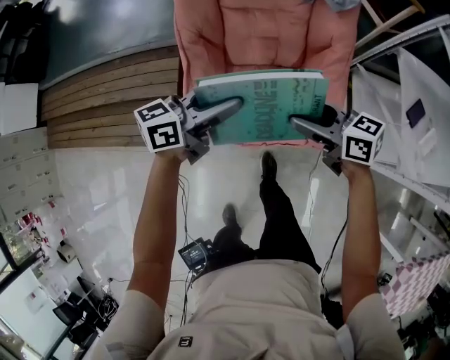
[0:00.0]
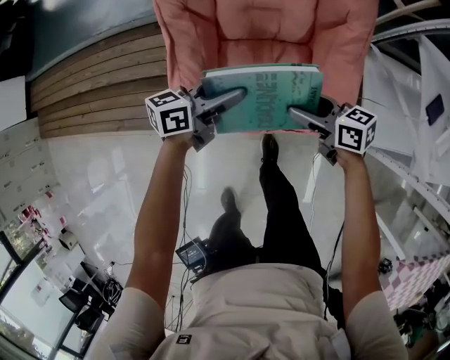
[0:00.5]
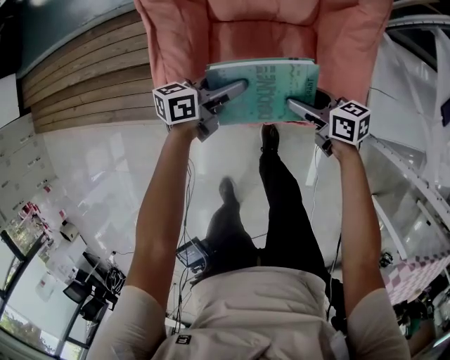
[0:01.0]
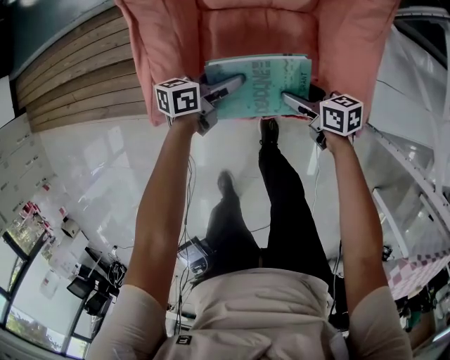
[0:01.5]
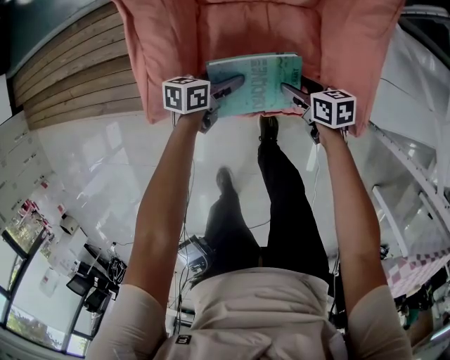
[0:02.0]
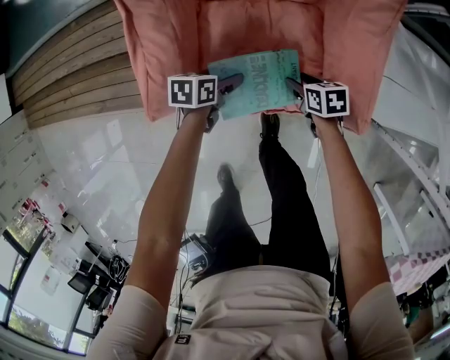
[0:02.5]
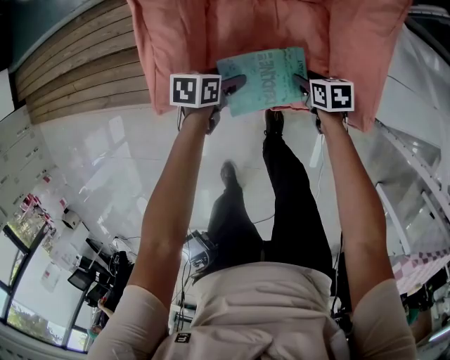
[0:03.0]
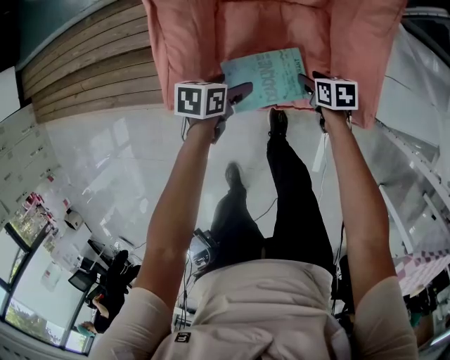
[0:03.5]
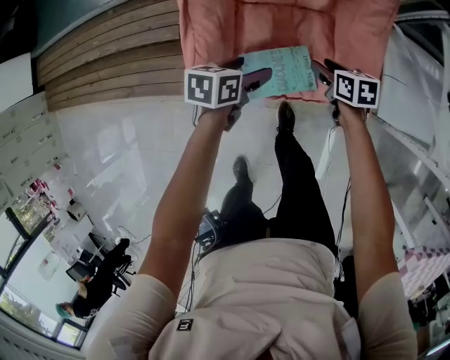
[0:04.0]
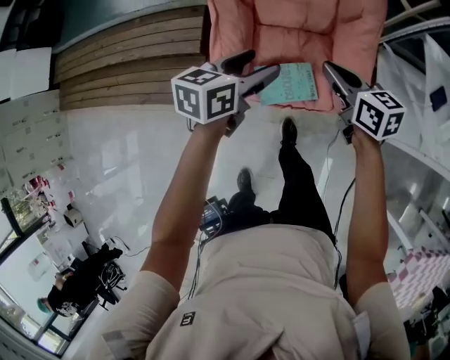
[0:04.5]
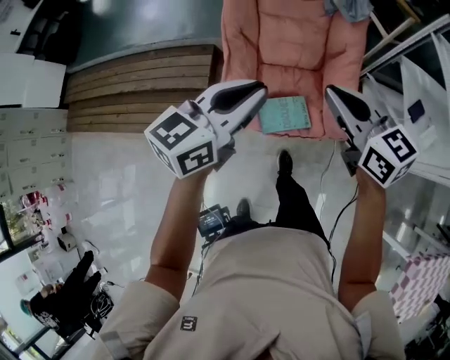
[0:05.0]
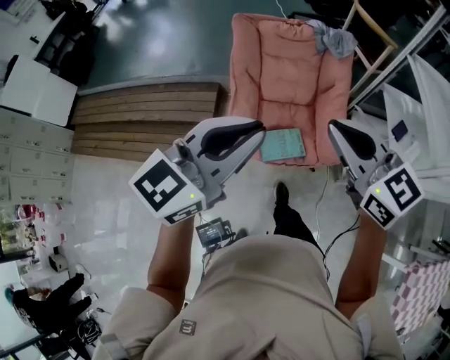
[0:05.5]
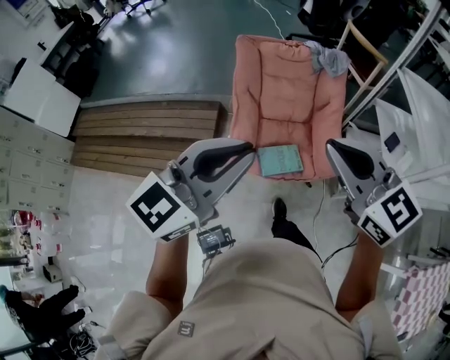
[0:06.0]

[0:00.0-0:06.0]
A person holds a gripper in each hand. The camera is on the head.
0:00.0 to 0:02.0: Both grippers travel together downward, approximately 40 cm. The left gripper tilts its fingers some 30 degrees downward; the right gripper changes its angle by some 30 degrees.
0:02.0 to 0:04.0: The two grippers go approximately 15 cm upward.
0:04.0 to 0:06.0: Both grippers move upward, about 70 cm. The right gripper tilts its fingers roughly 40 degrees upward, and closes up, while the left gripper tilts its fingers roughly 50 degrees upward, and closes its fingers.

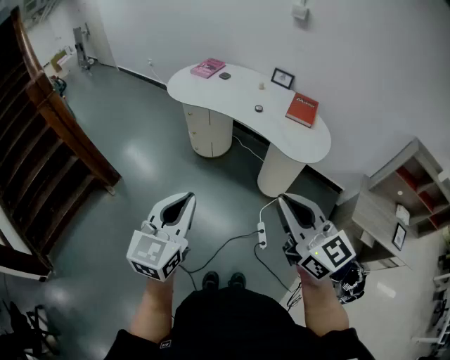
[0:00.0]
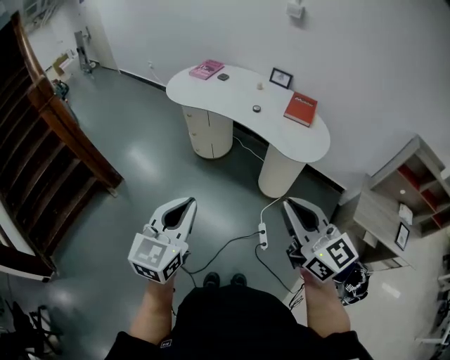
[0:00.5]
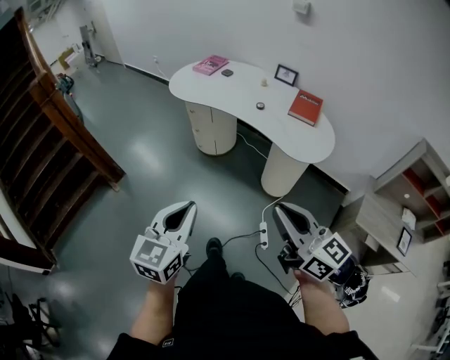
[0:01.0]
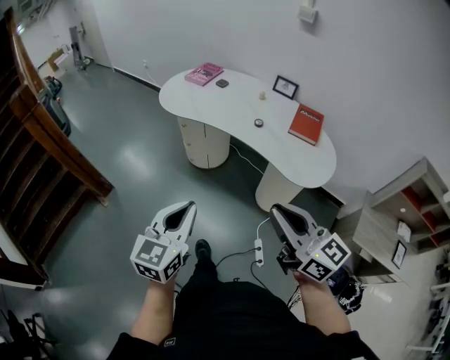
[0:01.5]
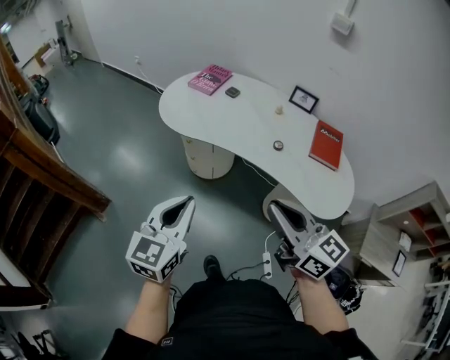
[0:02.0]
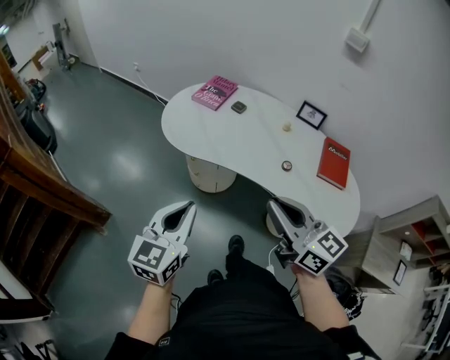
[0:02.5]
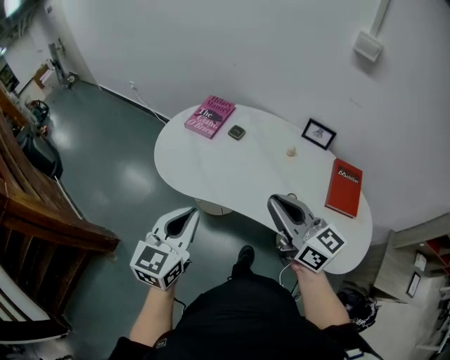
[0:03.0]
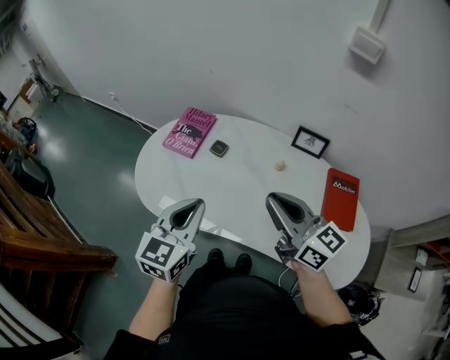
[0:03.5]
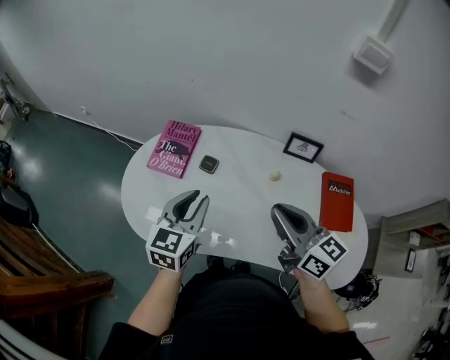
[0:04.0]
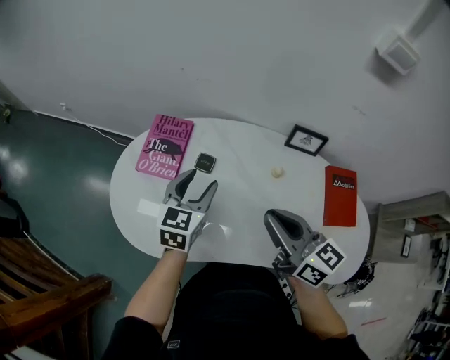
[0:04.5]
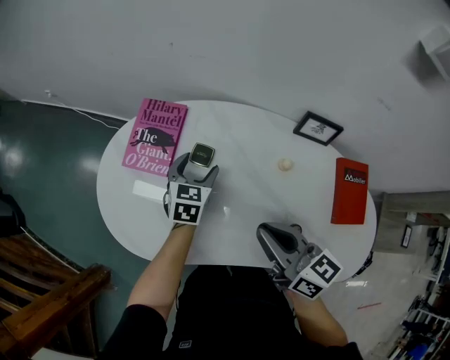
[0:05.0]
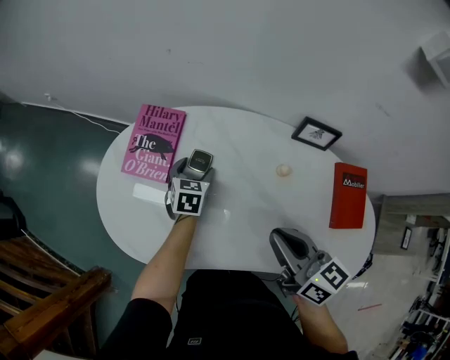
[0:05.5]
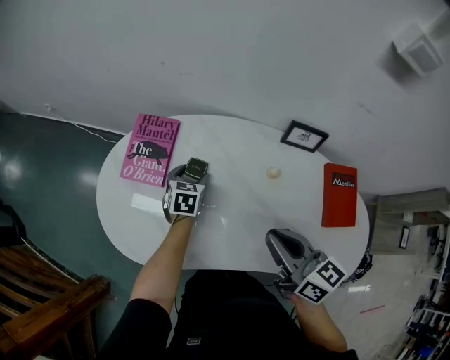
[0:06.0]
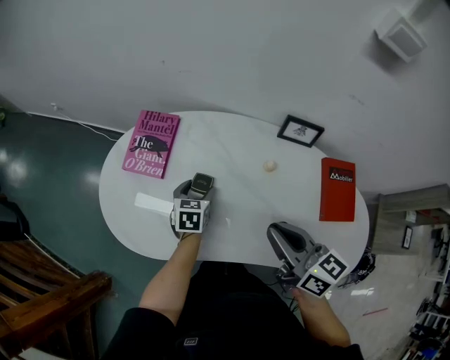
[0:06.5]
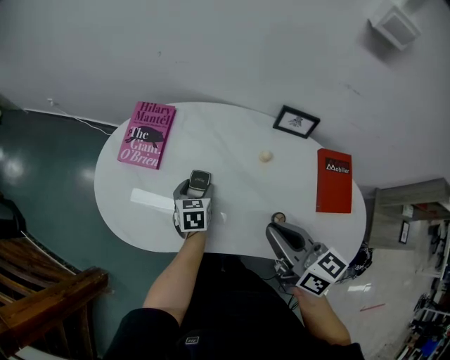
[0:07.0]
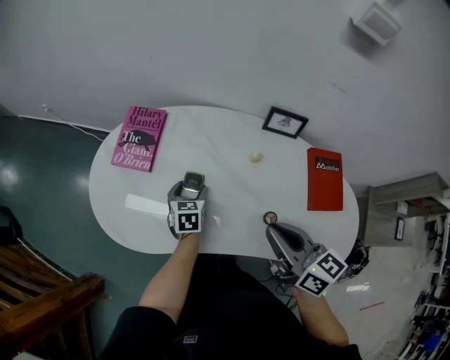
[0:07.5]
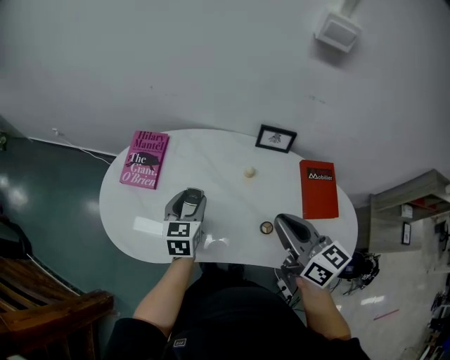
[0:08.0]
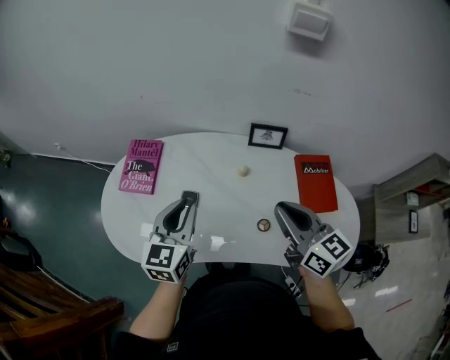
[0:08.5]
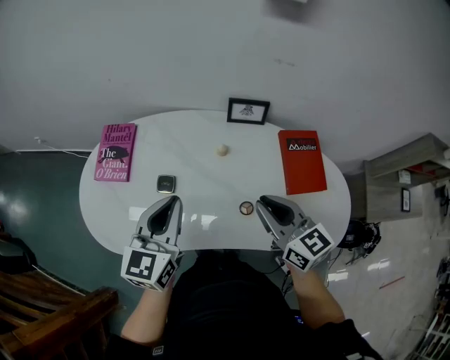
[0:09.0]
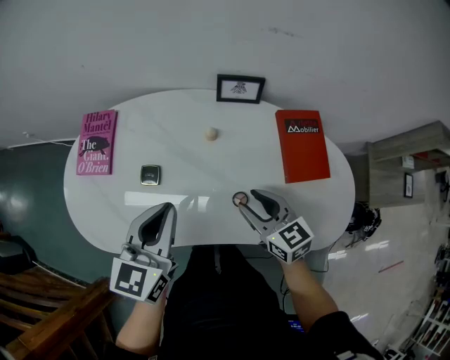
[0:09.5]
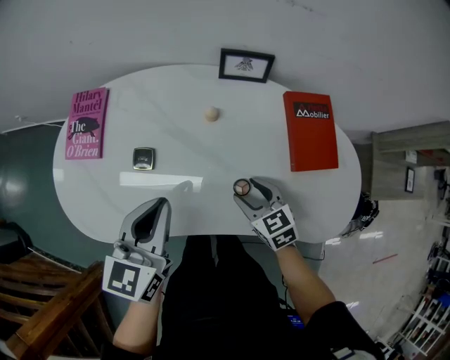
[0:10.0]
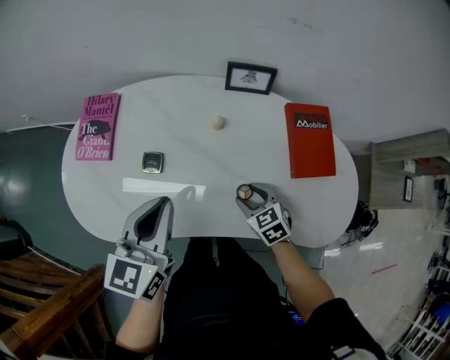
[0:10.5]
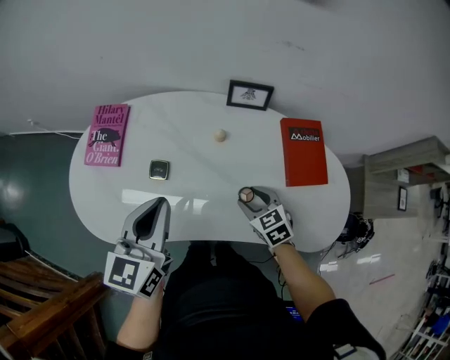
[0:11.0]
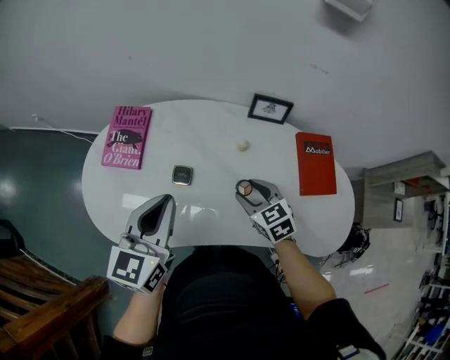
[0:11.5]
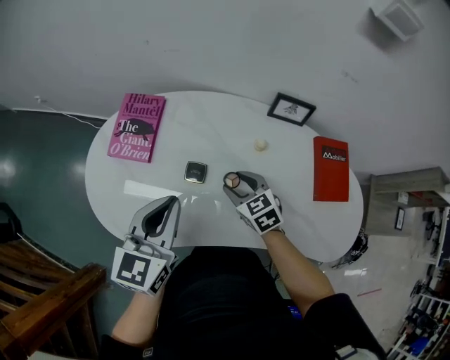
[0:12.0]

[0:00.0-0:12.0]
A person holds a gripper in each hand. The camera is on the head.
0:00.0 to 0:02.0: Both grippers move forward, approximately 35 cm.
0:02.0 to 0:04.0: Both grippers are carried forward, some 50 cm.
0:04.0 to 0:06.0: The right gripper moves downward, roughly 5 cm. Meanwhile the left gripper travels downward and forward by approximately 30 cm, turns by roughly 30 degrees, and opens up.
0:06.0 to 0:08.0: The left gripper travels upward and backward by some 20 cm; the right gripper moves to the right, backward and upward, about 10 cm.
0:08.0 to 0:10.0: The left gripper is displaced backward, to the right and upward by about 10 cm, and closes up, while the right gripper is displaced downward by about 25 cm, tilts its fingers approximately 30 degrees downward, and opens its fingers.
0:10.0 to 0:12.0: The right gripper travels to the left and forward by some 20 cm, while the left gripper moves to the left, some 15 cm.

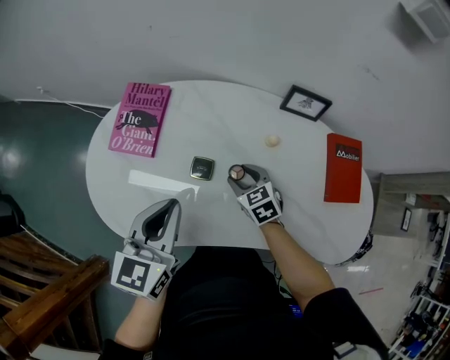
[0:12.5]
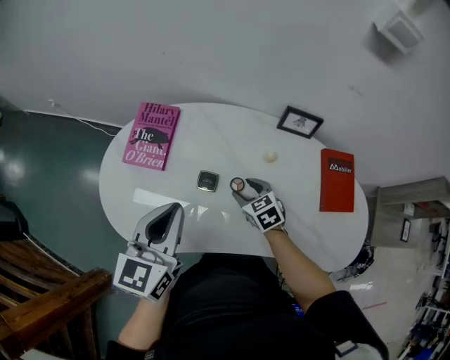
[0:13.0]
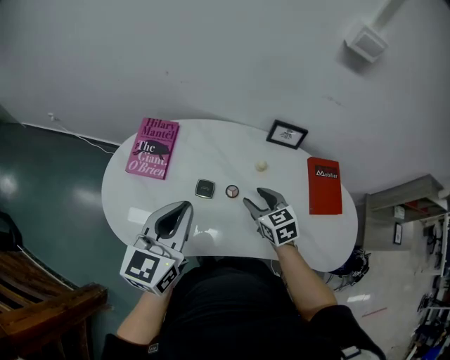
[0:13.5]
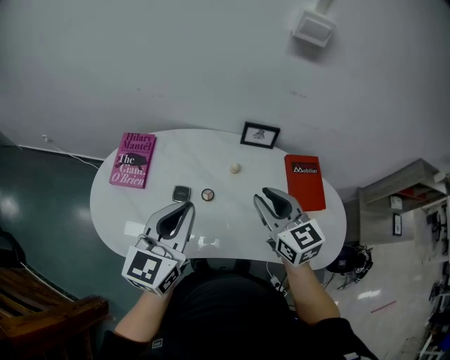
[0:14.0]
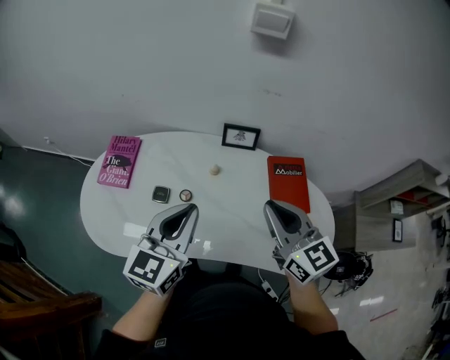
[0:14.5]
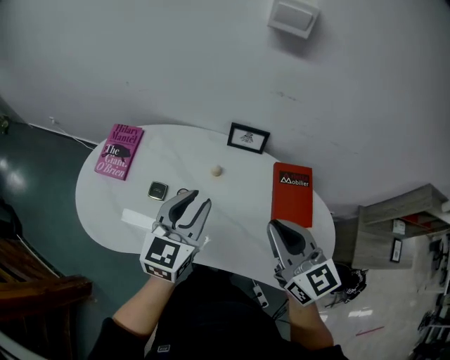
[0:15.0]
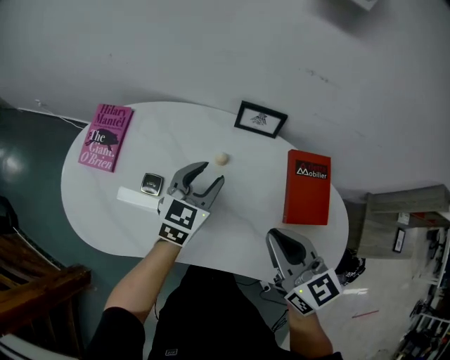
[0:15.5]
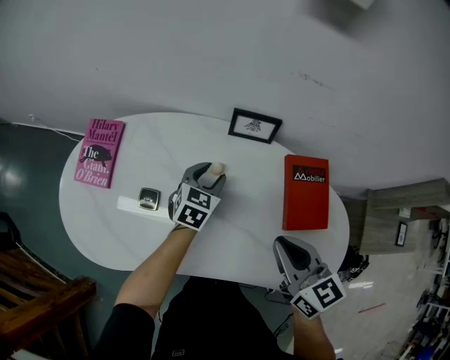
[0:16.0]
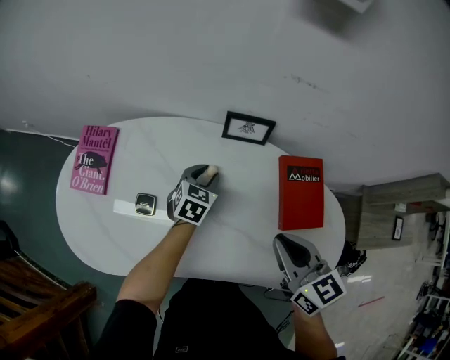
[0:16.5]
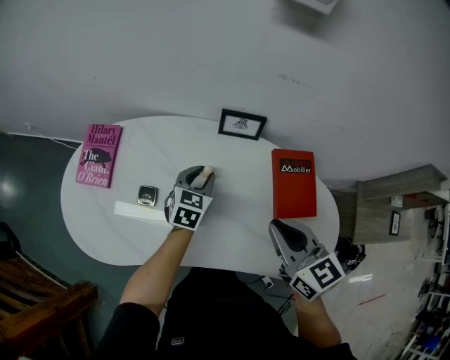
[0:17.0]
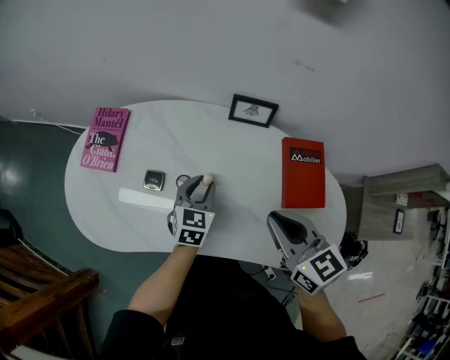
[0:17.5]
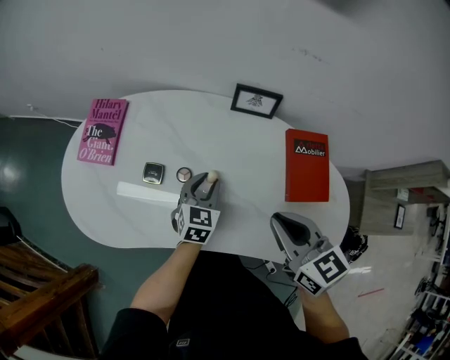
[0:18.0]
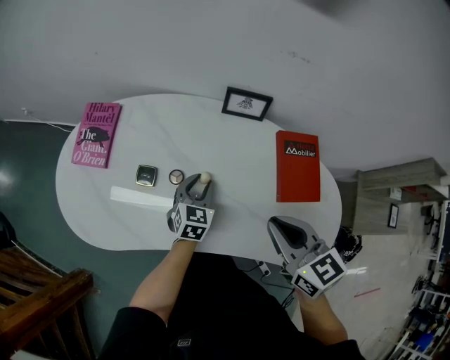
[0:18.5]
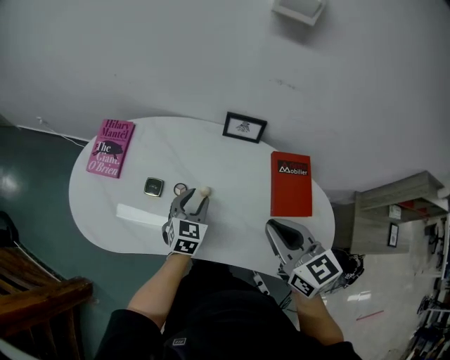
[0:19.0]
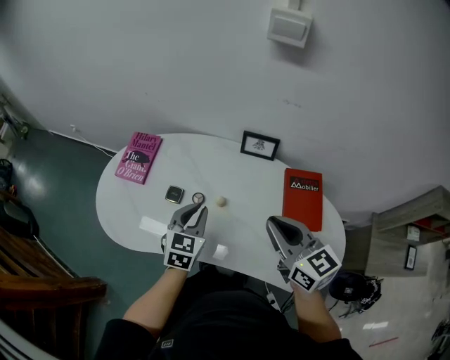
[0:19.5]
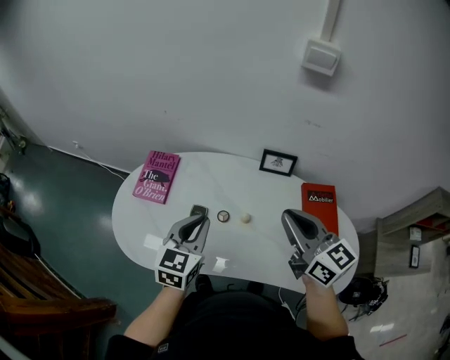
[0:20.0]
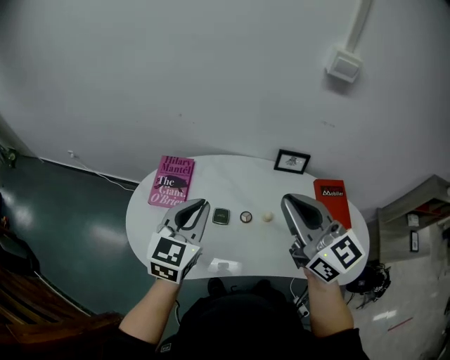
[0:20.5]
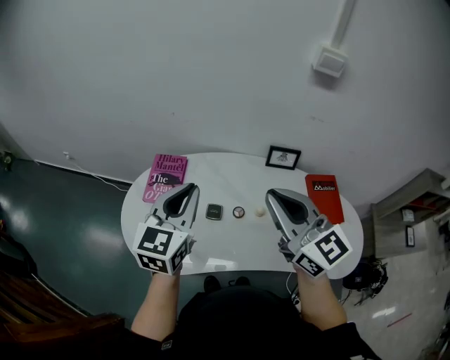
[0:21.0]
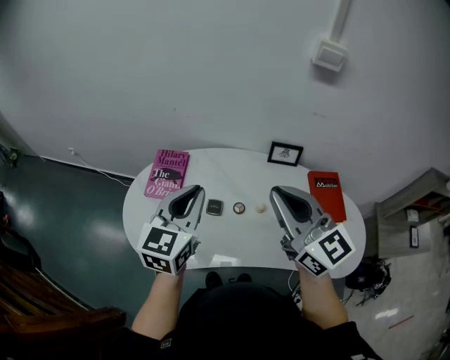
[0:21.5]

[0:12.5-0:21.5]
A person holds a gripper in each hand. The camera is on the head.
0:12.5 to 0:14.5: The right gripper shifts about 40 cm upward and to the right, tilts its fingers approximately 40 degrees upward, and closes, while the left gripper is displaced to the right and upward by approximately 25 cm.
0:14.5 to 0:17.0: The left gripper shifts roughly 30 cm downward and forward, and turns by some 30 degrees, while the right gripper heads downward, covering about 10 cm.
0:17.0 to 0:19.5: The right gripper shifts by some 5 cm. Meanwhile the left gripper travels backward, upward and to the left by roughly 20 cm.
0:19.5 to 0:21.5: The left gripper moves upward and to the left, about 25 cm, and changes its angle by roughly 20 degrees. The right gripper goes roughly 25 cm to the left and upward, and rotates about 20 degrees.
